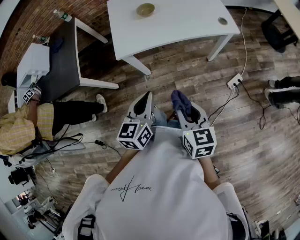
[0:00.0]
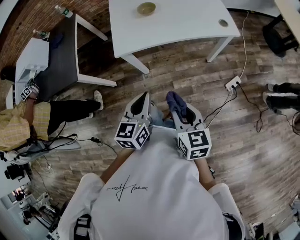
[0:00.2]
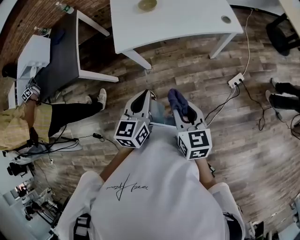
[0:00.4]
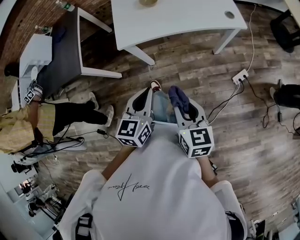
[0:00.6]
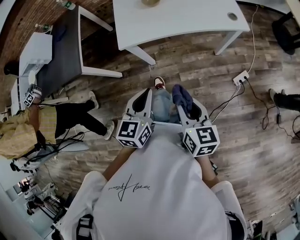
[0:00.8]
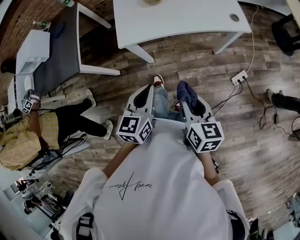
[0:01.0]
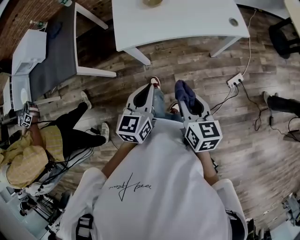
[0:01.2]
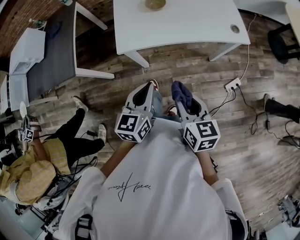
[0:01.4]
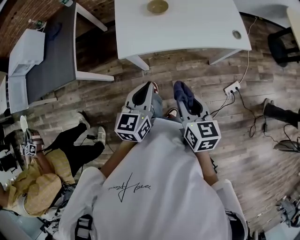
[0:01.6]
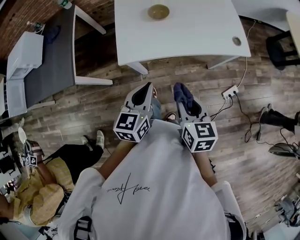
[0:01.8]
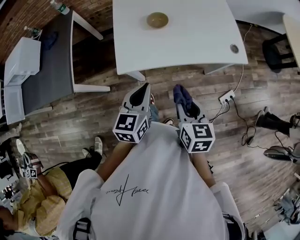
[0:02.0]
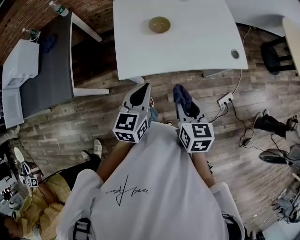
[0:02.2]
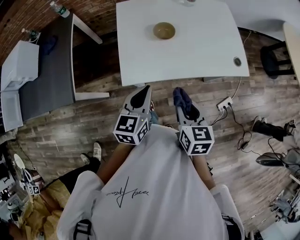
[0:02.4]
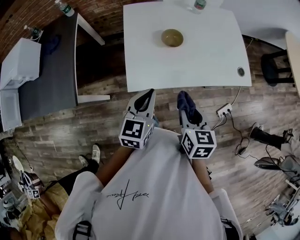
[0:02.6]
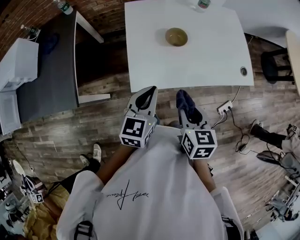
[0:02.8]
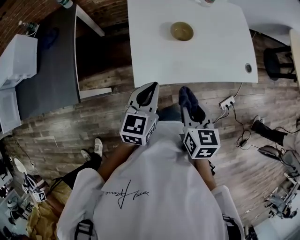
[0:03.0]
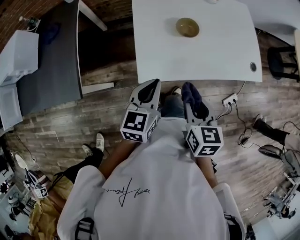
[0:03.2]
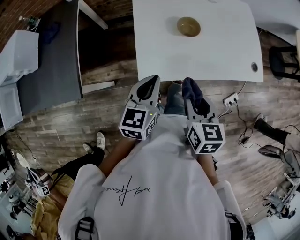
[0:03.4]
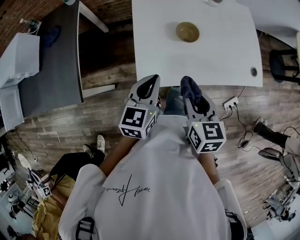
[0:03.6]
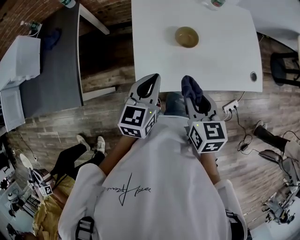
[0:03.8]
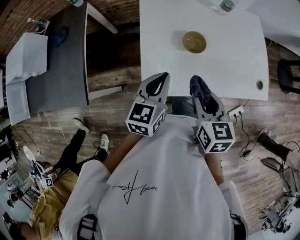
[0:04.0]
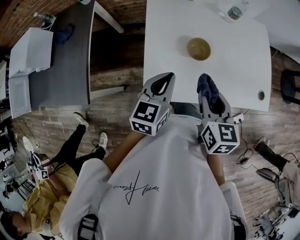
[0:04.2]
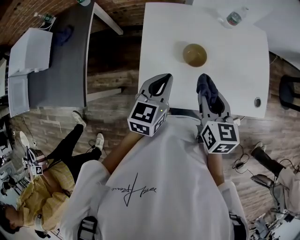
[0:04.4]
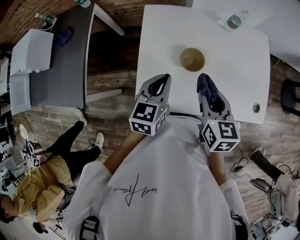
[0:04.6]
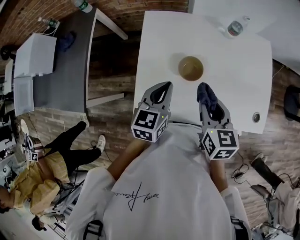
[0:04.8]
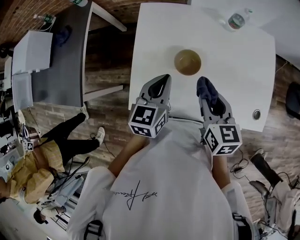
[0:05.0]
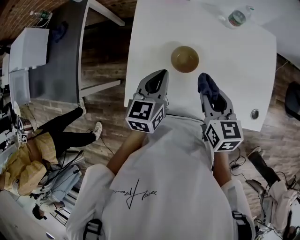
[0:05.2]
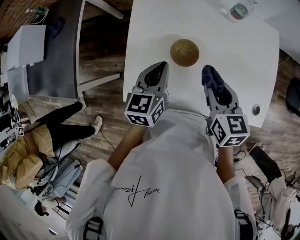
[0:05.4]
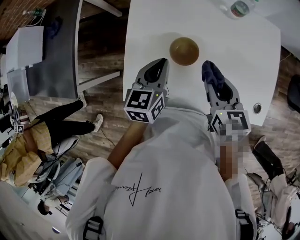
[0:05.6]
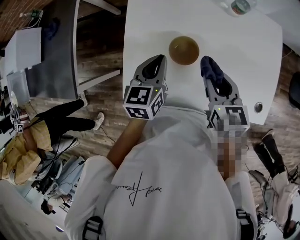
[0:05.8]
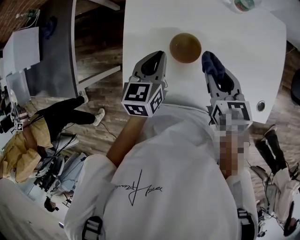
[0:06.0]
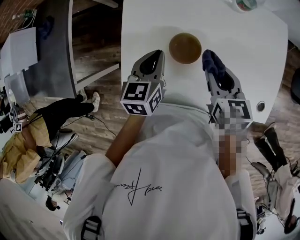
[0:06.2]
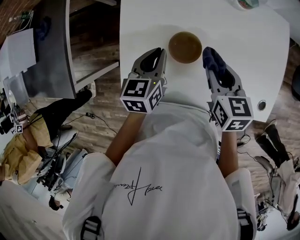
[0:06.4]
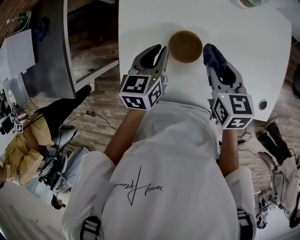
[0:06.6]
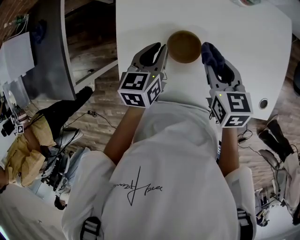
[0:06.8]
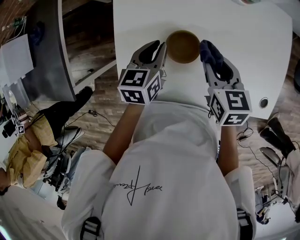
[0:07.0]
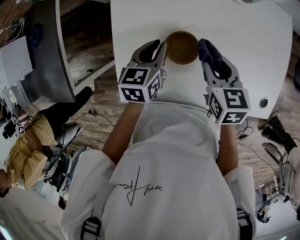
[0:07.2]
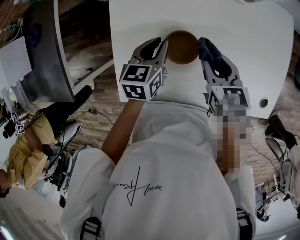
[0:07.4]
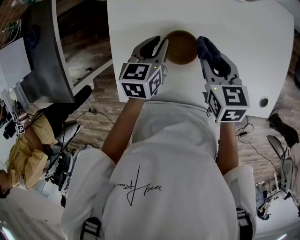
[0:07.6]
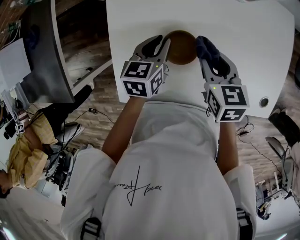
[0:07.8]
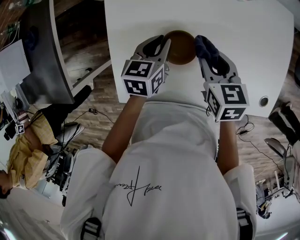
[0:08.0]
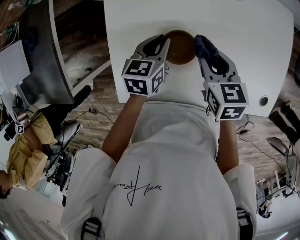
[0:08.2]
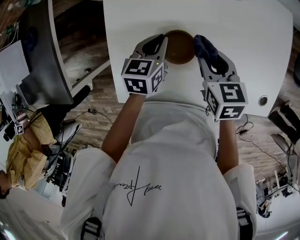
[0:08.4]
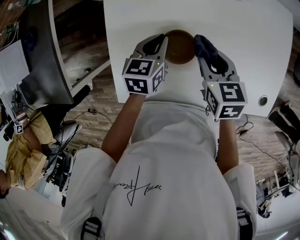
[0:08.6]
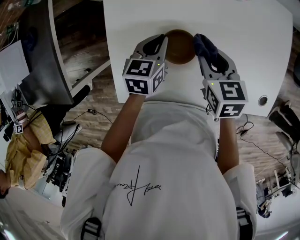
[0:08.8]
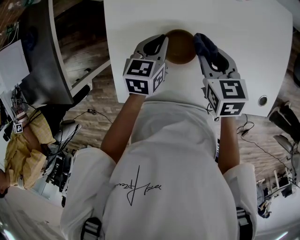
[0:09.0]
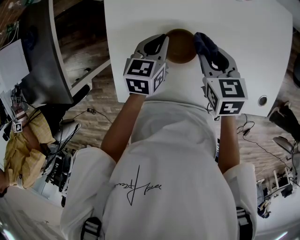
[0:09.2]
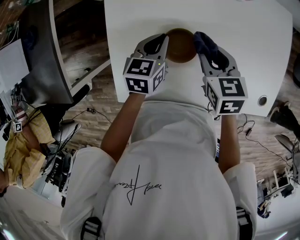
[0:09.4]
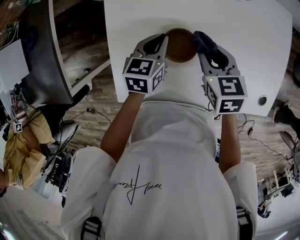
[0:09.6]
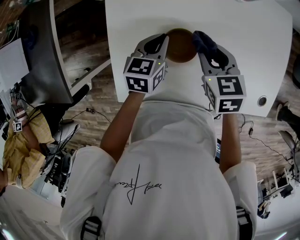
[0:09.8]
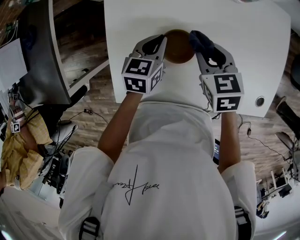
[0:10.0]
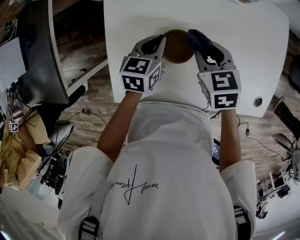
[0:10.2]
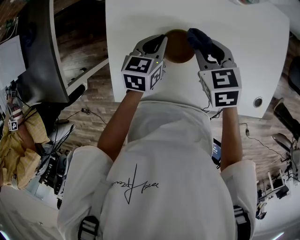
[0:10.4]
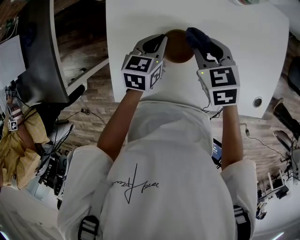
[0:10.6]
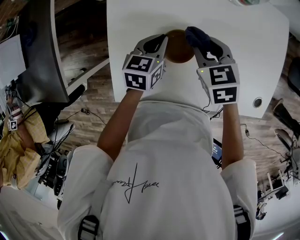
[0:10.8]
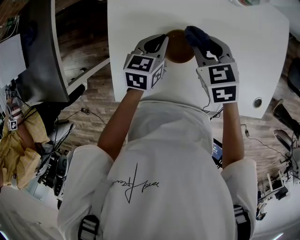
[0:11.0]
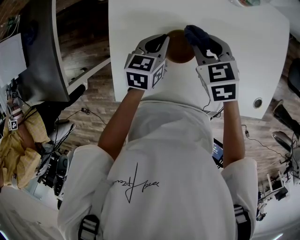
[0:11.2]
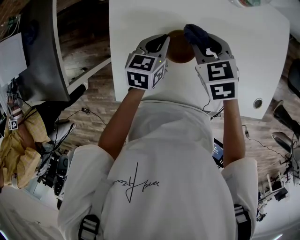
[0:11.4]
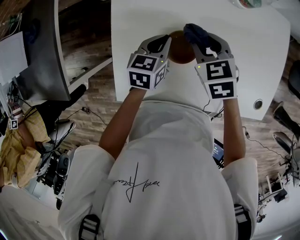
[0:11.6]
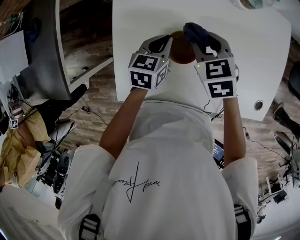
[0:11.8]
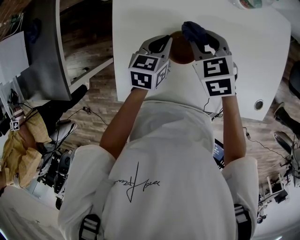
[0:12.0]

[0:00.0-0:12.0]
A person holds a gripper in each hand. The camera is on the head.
0:00.0 to 0:01.6: Both grippers move forward, about 10 cm.
0:01.6 to 0:03.0: The grippers both shift forward and to the left by roughly 20 cm.
0:03.0 to 0:04.4: Both grippers travel together forward, roughly 15 cm.
0:04.4 to 0:06.0: Both grippers move to the right and backward, about 20 cm.
0:06.0 to 0:07.6: The left gripper shifts by roughly 5 cm; the right gripper moves to the left, about 5 cm.
0:07.6 to 0:09.0: The left gripper closes up.
0:09.0 to 0:10.4: There are only small adjustments of the grippers.
0:10.4 to 0:12.0: There are only small adjustments of the grippers.

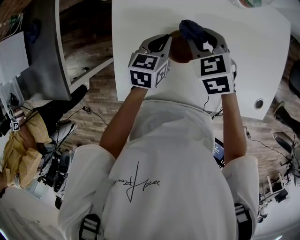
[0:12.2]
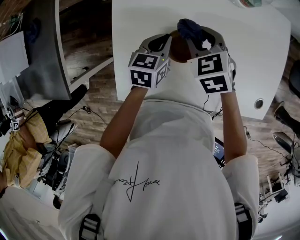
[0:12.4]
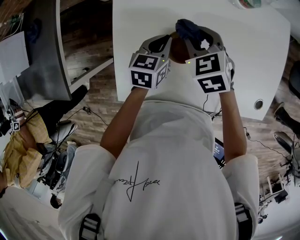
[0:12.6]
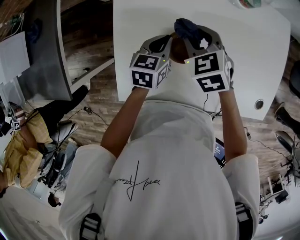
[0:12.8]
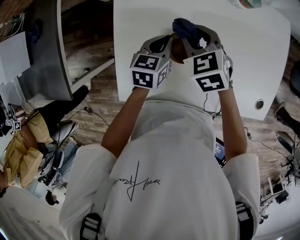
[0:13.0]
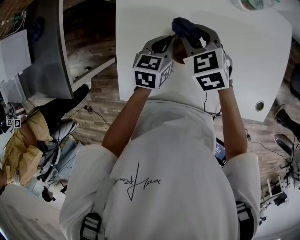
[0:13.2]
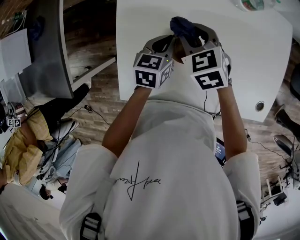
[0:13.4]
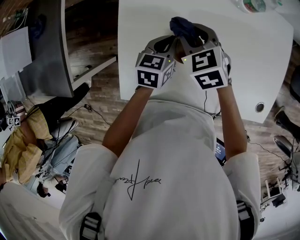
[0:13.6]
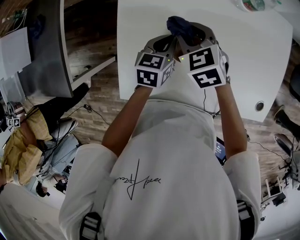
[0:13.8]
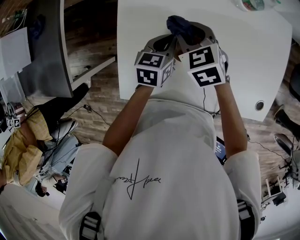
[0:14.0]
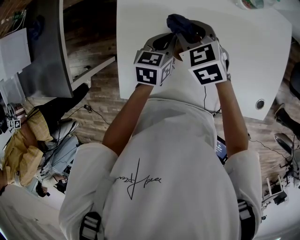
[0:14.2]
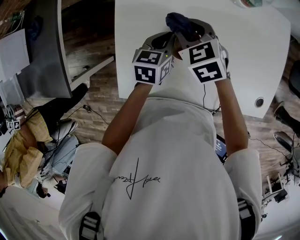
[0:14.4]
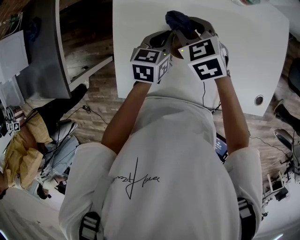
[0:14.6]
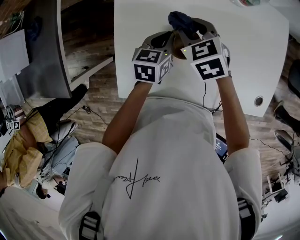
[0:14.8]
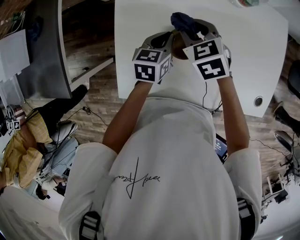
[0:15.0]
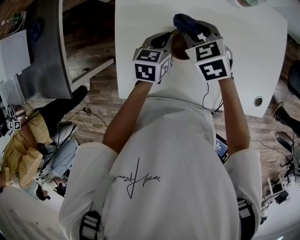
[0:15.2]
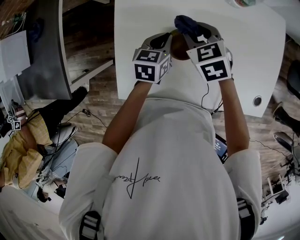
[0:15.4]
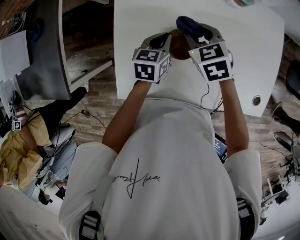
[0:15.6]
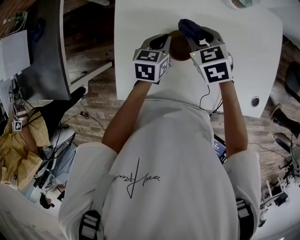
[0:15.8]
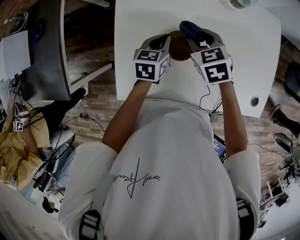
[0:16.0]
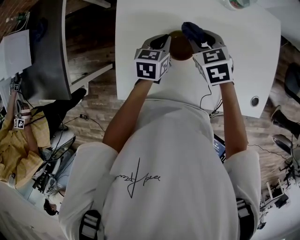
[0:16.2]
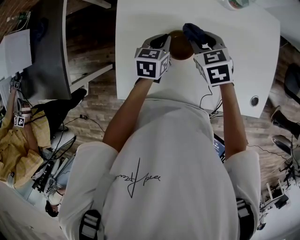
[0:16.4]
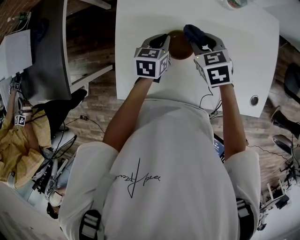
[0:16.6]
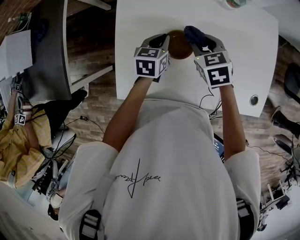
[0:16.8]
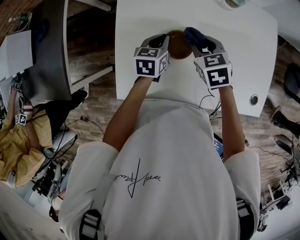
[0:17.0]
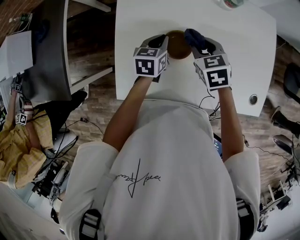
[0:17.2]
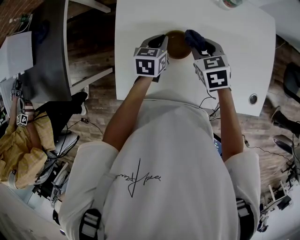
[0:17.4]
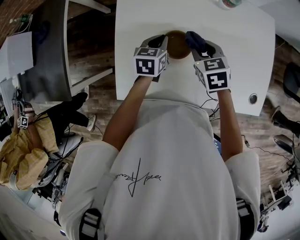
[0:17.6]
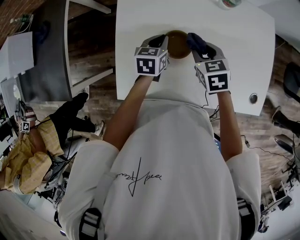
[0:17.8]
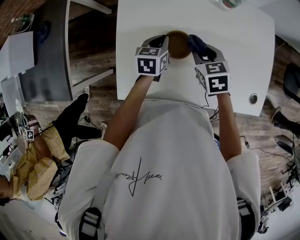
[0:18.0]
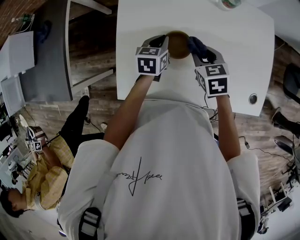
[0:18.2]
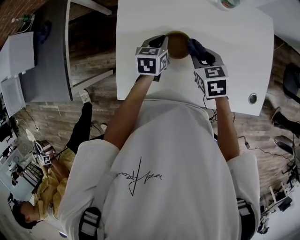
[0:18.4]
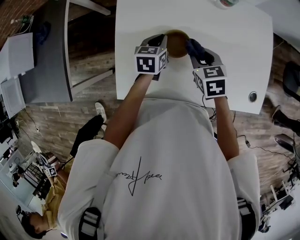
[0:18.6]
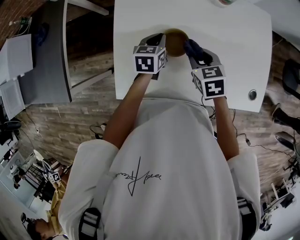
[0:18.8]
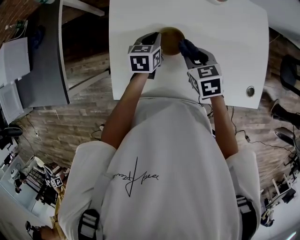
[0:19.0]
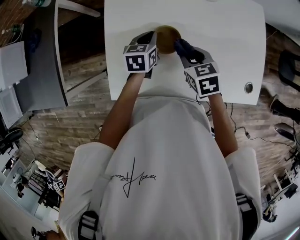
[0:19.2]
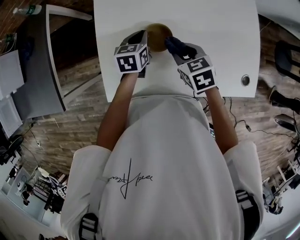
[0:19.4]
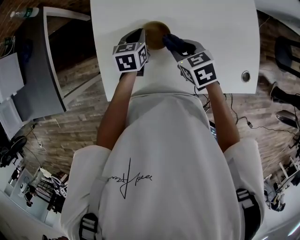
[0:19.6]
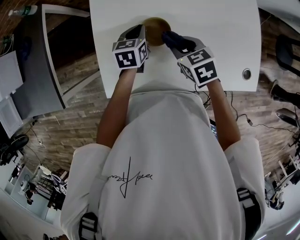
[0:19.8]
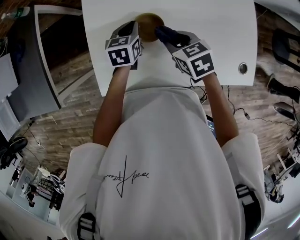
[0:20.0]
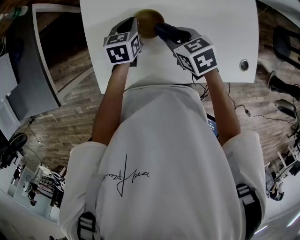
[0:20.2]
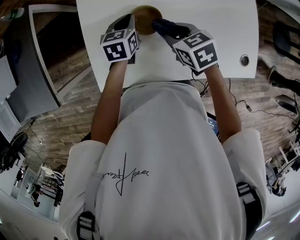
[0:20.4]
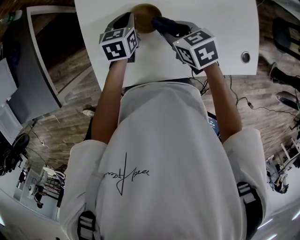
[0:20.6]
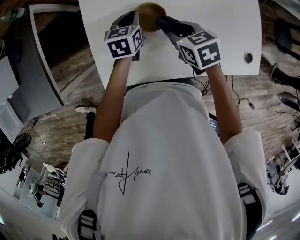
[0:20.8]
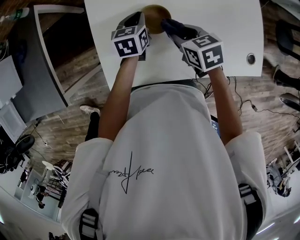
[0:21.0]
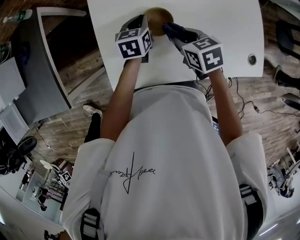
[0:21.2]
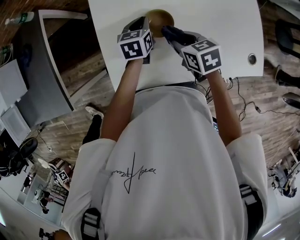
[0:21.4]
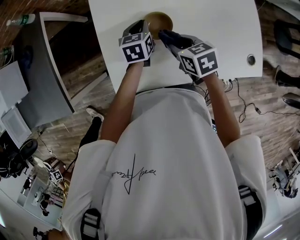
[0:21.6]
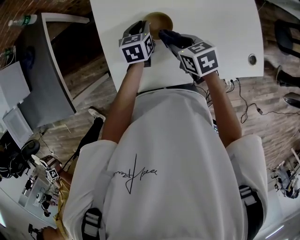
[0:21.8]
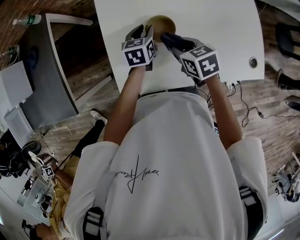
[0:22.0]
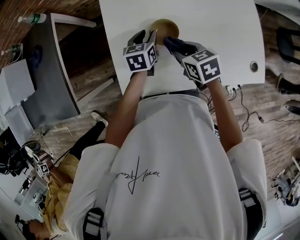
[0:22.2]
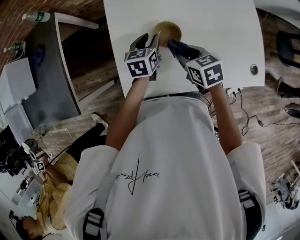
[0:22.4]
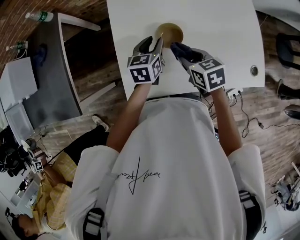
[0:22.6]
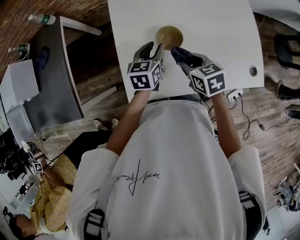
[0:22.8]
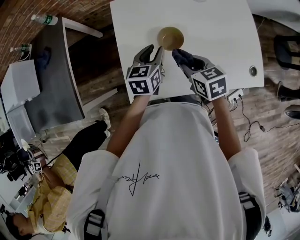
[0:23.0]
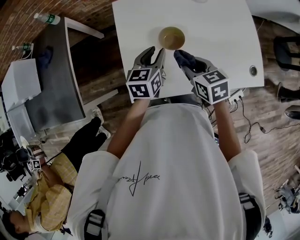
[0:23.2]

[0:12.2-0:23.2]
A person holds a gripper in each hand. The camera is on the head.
0:12.2 to 0:13.8: The right gripper travels to the left by about 5 cm.
0:13.8 to 0:15.4: There are only small adjustments of the grippers.
0:15.4 to 0:17.0: The right gripper moves approximately 5 cm.
0:17.0 to 0:18.4: The grippers make only small movements.
0:18.4 to 0:20.0: The grippers stay close to where they were, moving slightly.
0:20.0 to 0:21.6: The grippers stay close to where they were, moving slightly.
0:21.6 to 0:23.2: The right gripper shifts approximately 5 cm upward, while the left gripper travels upward and backward by some 15 cm, and opens its fingers.

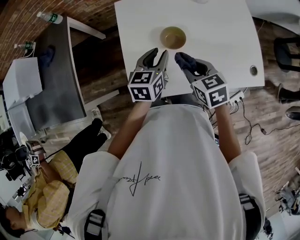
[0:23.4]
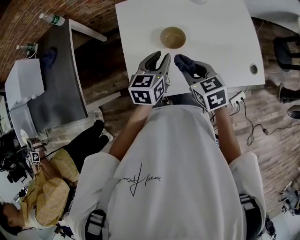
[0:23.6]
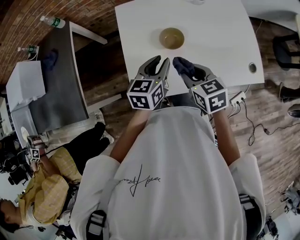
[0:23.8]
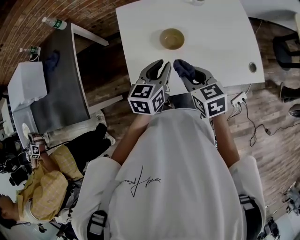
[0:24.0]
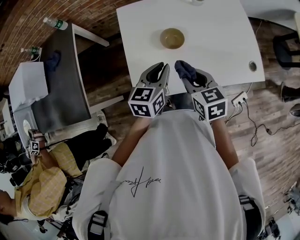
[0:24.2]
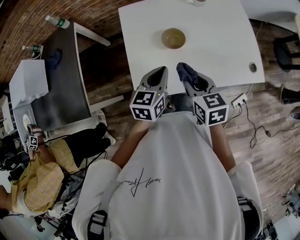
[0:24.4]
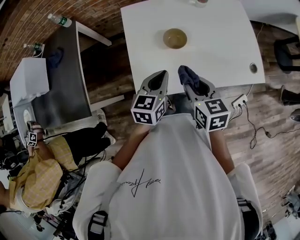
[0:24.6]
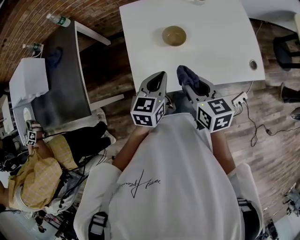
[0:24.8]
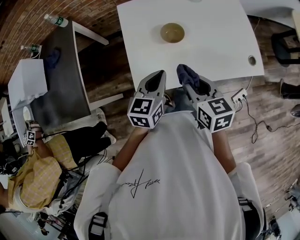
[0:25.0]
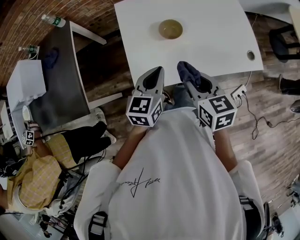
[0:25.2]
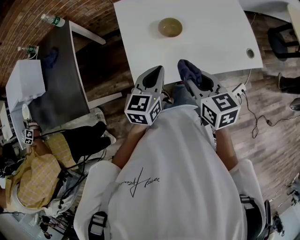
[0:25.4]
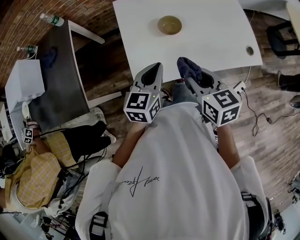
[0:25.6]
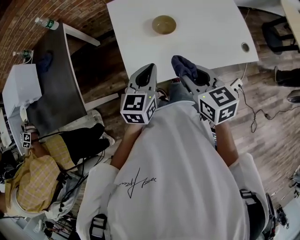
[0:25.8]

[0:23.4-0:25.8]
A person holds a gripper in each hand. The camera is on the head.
0:23.4 to 0:24.6: The left gripper shifts approximately 10 cm backward, and closes. The right gripper shifts approximately 10 cm backward and upward.
0:24.6 to 0:25.8: The left gripper ends up about 5 cm from where it was; the right gripper changes place by about 5 cm.
